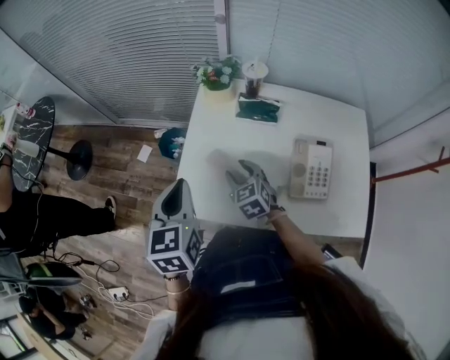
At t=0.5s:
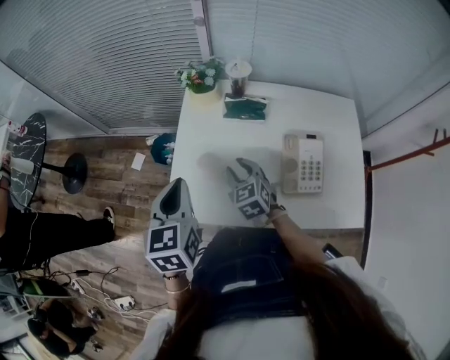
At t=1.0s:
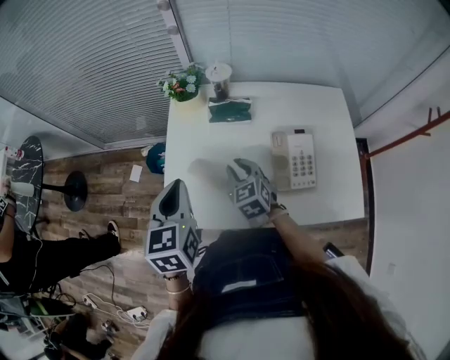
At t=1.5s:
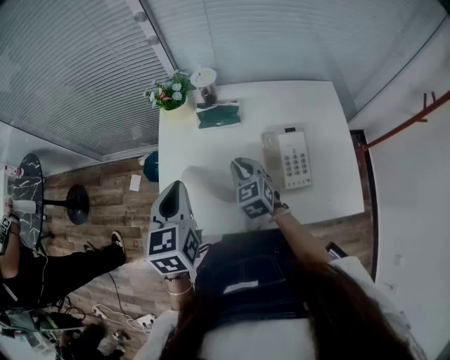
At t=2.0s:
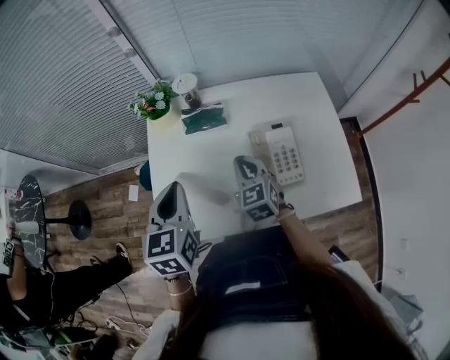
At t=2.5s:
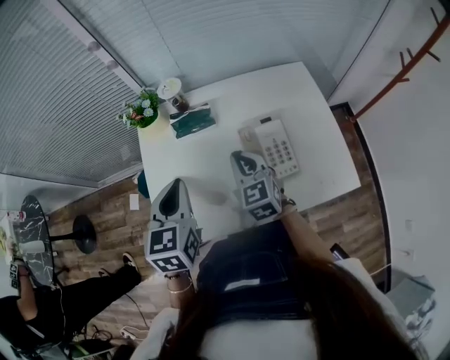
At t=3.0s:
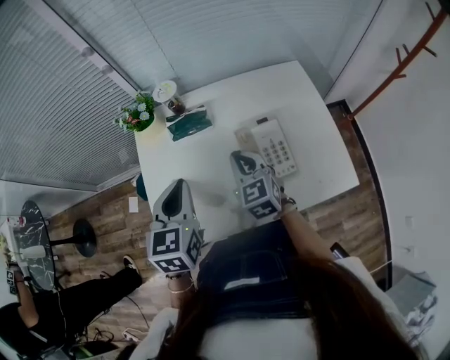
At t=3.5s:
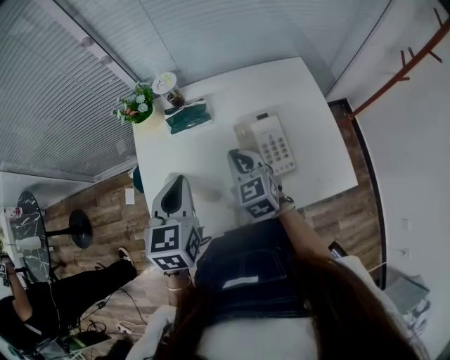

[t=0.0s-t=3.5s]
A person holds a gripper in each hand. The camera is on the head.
t=0.0s to t=2.0s: Both grippers travel together to the right, roughly 15 cm. The right gripper turns by about 20 degrees, and closes.
t=2.0s to t=3.5s: The left gripper is displaced to the right by about 5 cm.

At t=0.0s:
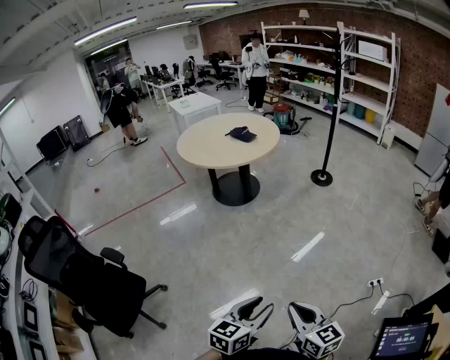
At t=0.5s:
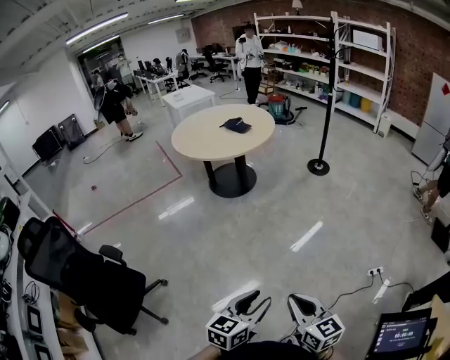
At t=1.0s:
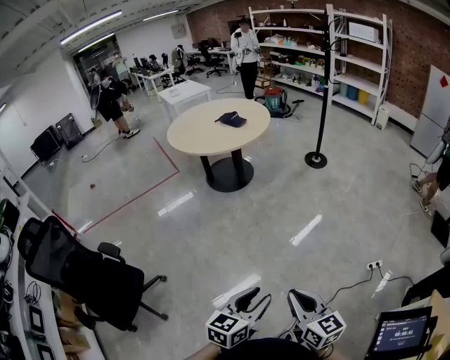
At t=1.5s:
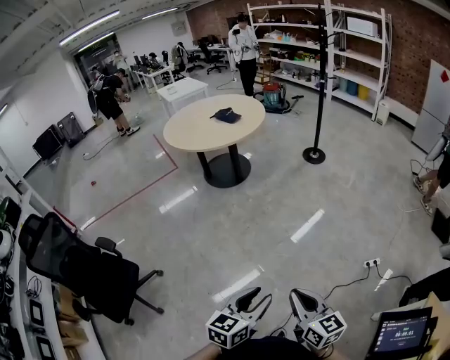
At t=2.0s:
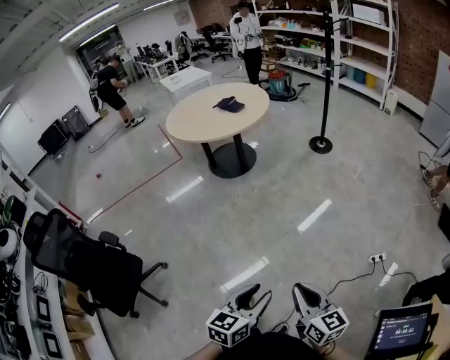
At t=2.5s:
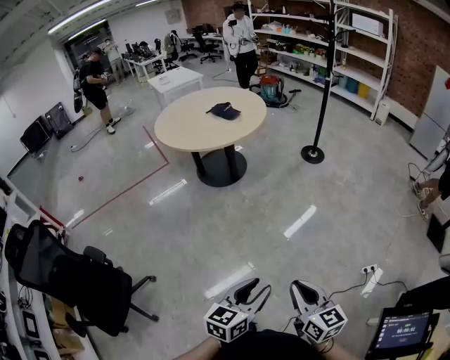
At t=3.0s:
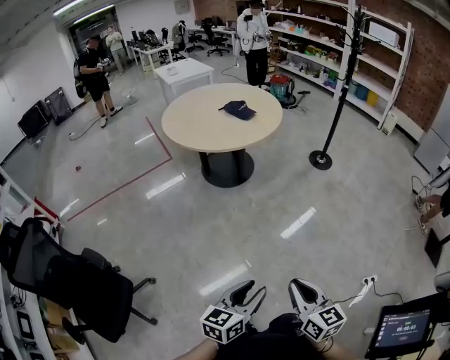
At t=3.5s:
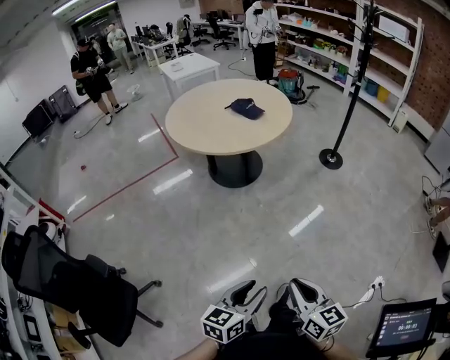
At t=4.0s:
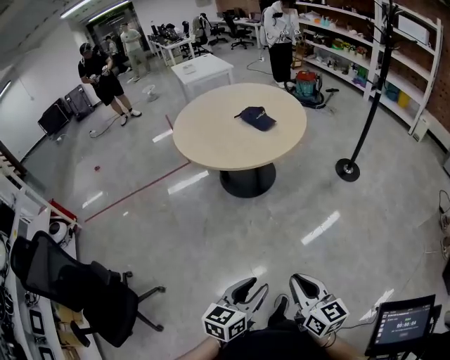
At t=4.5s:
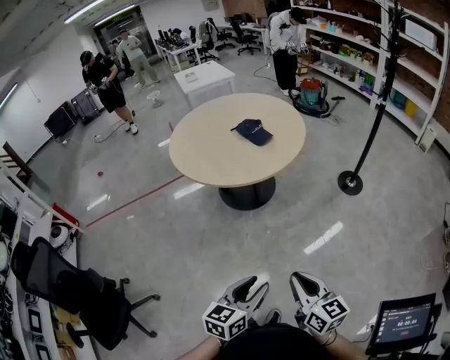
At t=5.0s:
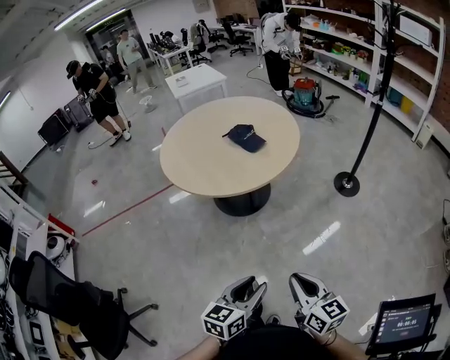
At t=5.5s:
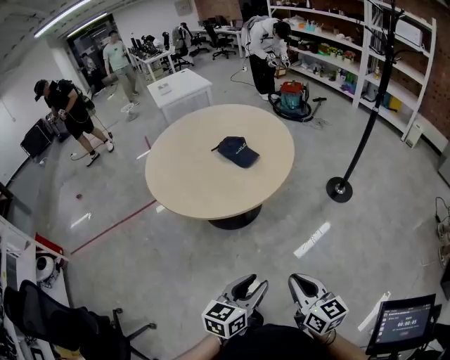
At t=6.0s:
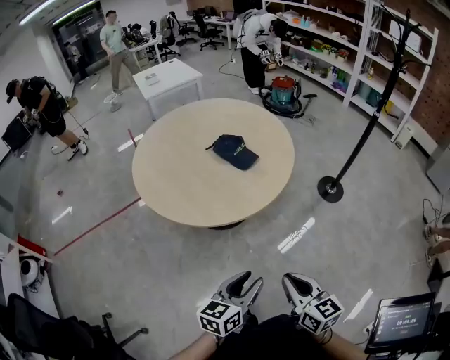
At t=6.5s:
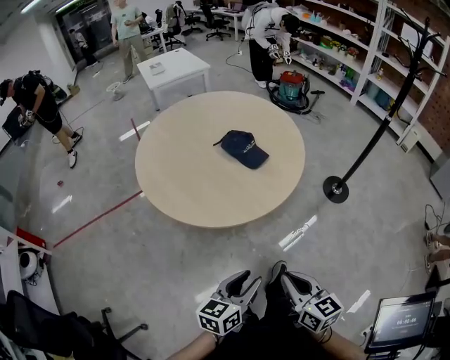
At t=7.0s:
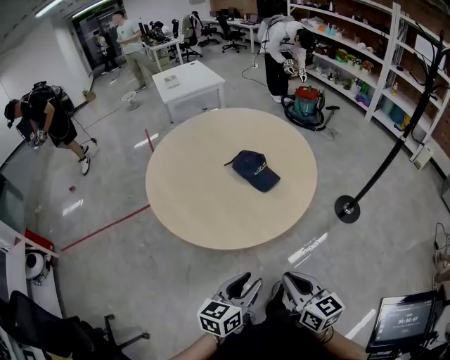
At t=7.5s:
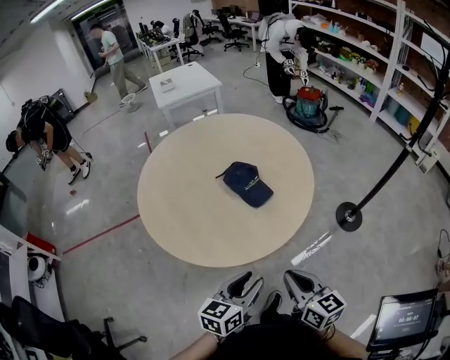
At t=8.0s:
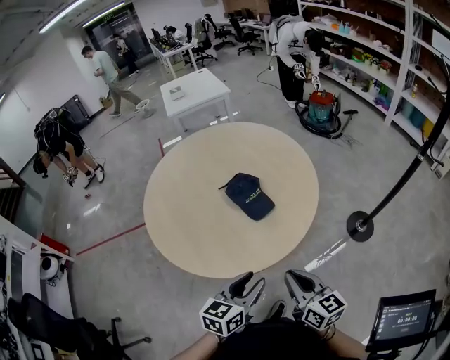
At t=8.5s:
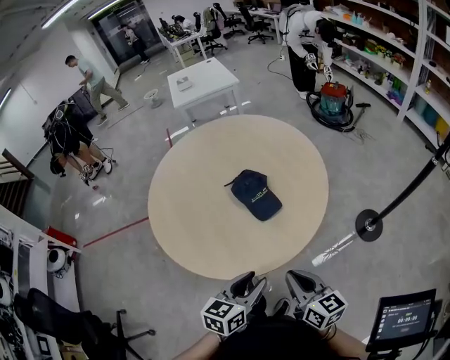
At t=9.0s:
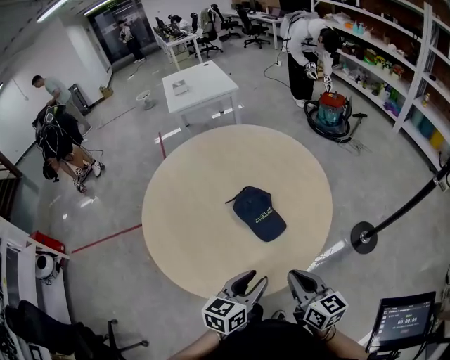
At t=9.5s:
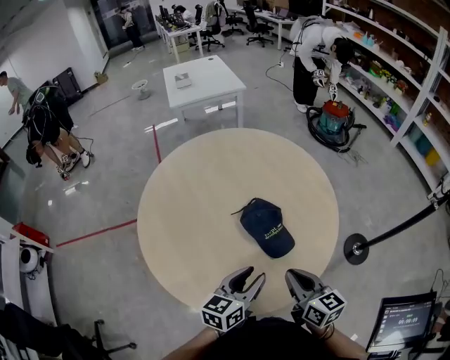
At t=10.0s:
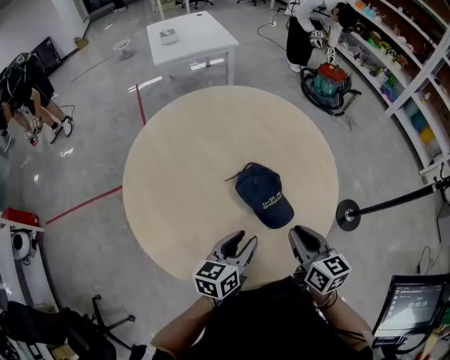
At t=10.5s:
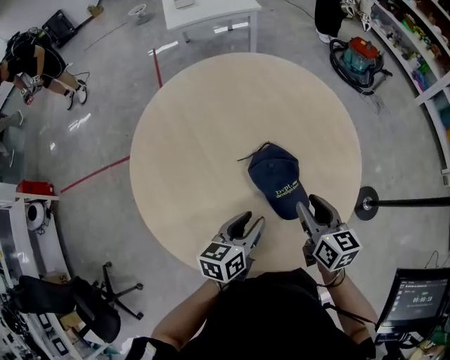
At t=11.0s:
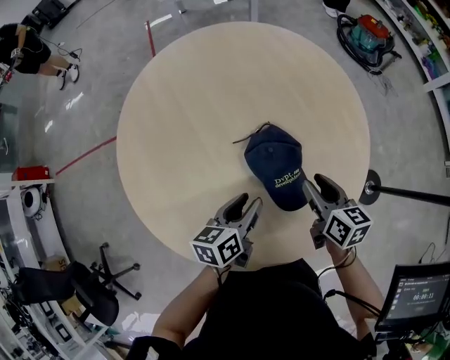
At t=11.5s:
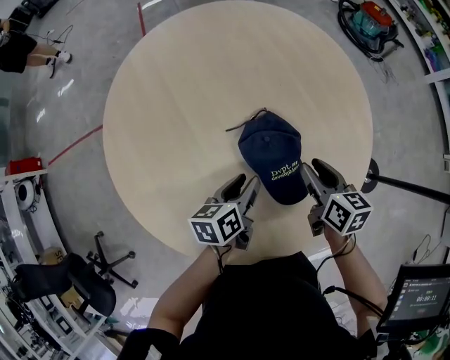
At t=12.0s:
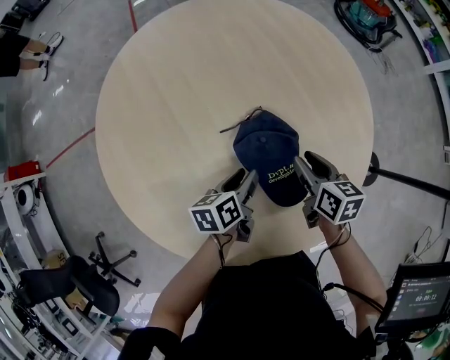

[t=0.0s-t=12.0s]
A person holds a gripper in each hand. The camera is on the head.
t=0.0s to t=2.0s: Both grippers move to the right, some 10 cm.
t=2.0s to t=4.0s: Both grippers are carried forward, some 40 cm.
t=4.0s to t=6.0s: The grippers both shift forward by roughly 35 cm.
t=6.0s to t=8.0s: The grippers both shift forward by roughly 25 cm.
t=8.0s to t=10.0s: The left gripper is displaced forward and to the left by about 30 cm, while the right gripper is displaced forward by roughly 25 cm.
t=10.0s to t=12.0s: The right gripper heads forward and downward, covering roughly 25 cm, turns by some 20 degrees, and opens. Meanwhile the left gripper is displaced downward and forward by roughly 20 cm, and turns by some 30 degrees.

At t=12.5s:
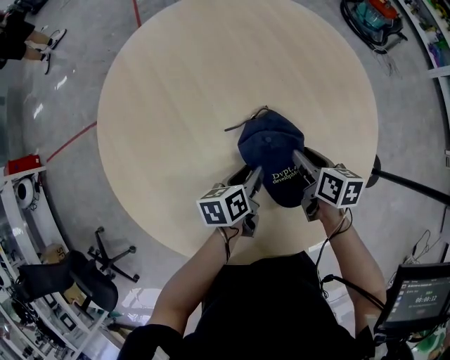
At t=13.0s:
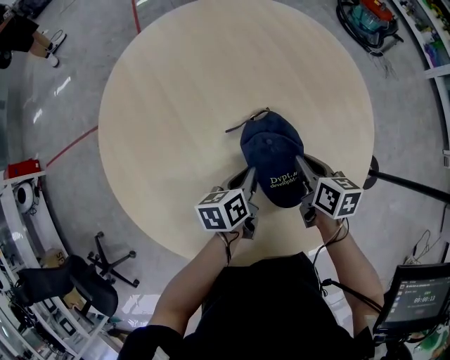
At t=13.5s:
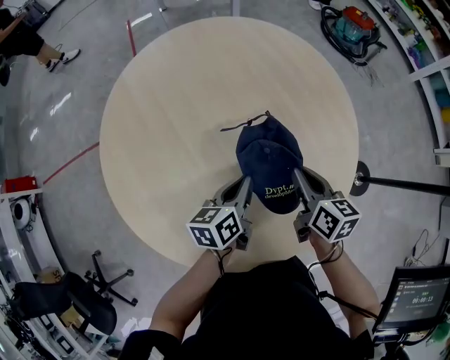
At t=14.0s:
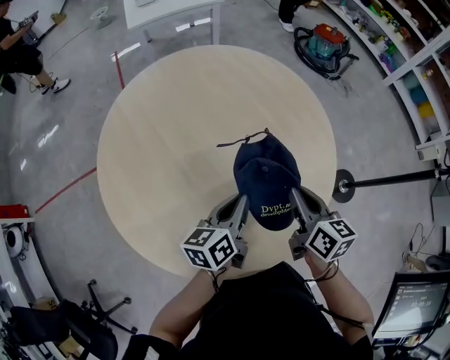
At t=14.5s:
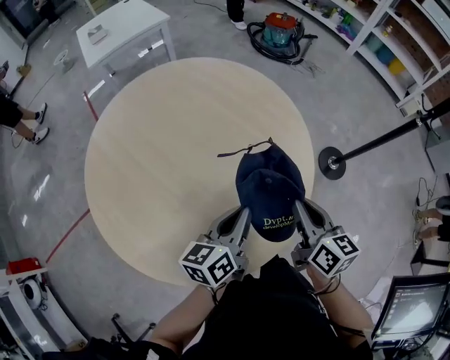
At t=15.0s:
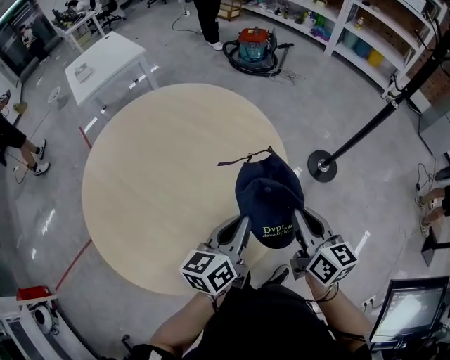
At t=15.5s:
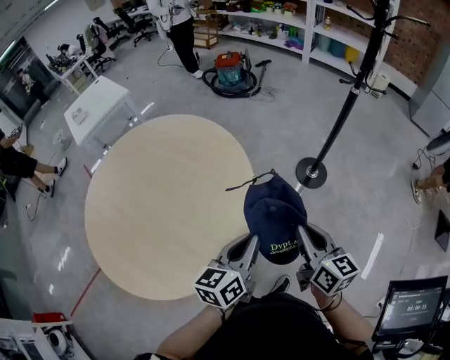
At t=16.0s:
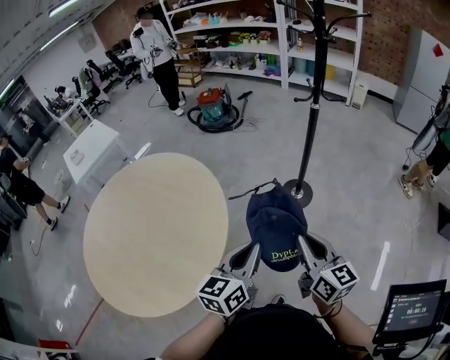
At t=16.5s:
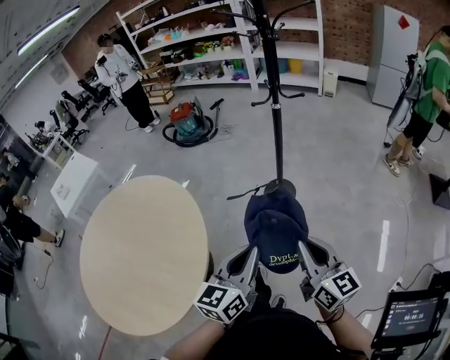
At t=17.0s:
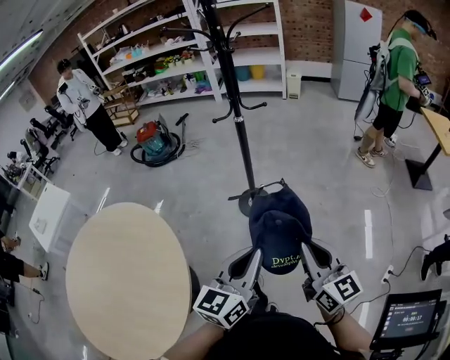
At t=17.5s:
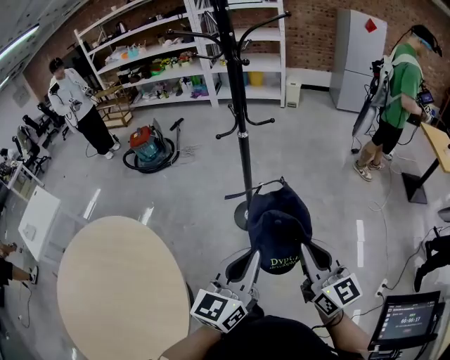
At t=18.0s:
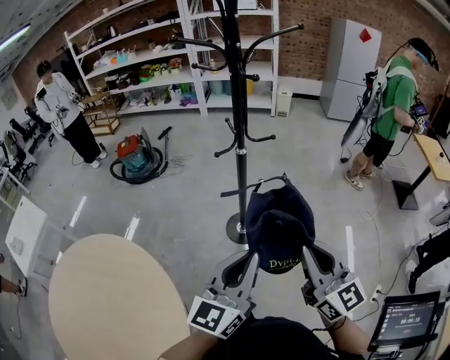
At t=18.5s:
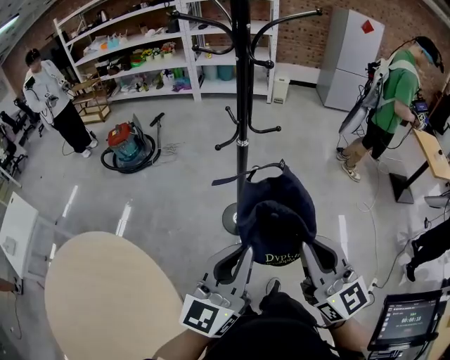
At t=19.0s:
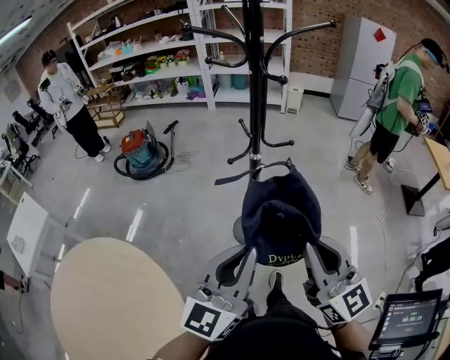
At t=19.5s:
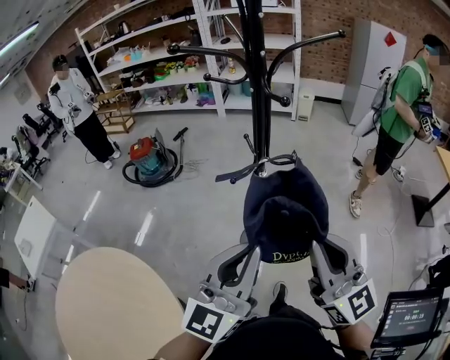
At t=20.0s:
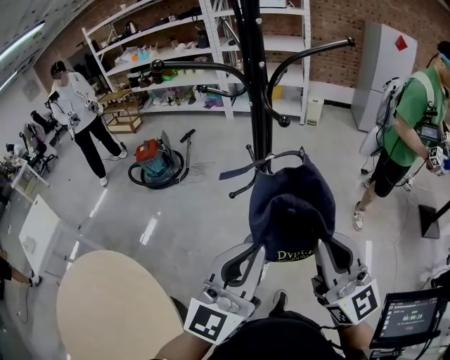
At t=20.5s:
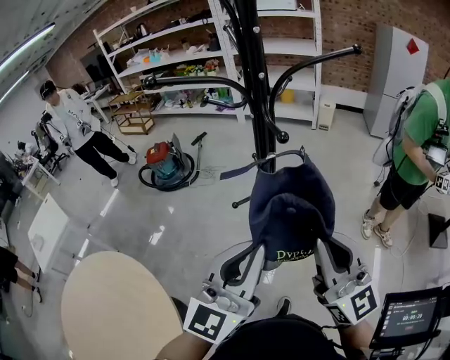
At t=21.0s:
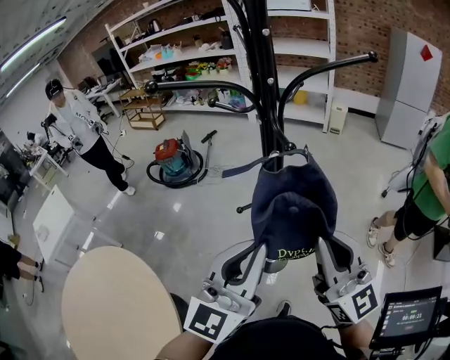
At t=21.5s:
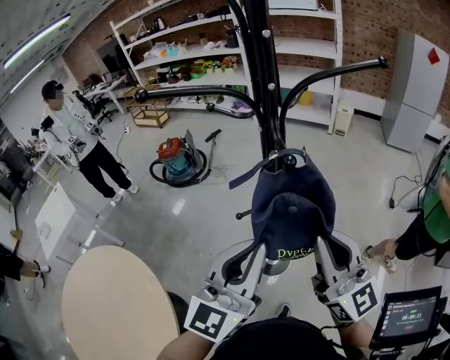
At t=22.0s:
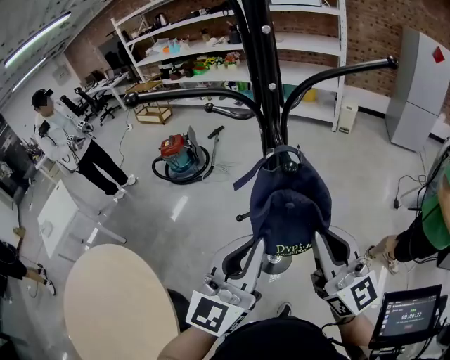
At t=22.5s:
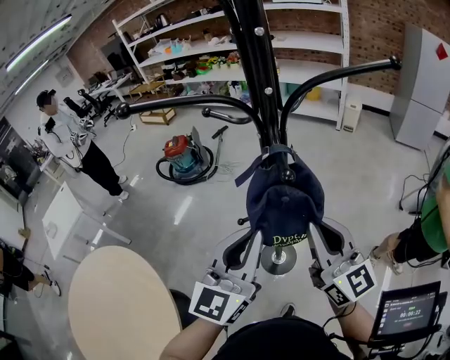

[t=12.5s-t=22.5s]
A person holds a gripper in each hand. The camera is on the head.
t=12.5s to t=14.5s: Both grippers travel together upward, some 20 cm. The right gripper rotates about 40 degrees, and closes. Meanwhile the left gripper rotates roughly 40 degrees, and closes its fingers.
t=14.5s to t=16.5s: The pair of grippers is taken to the right, roughly 50 cm. The left gripper swivels roughly 40 degrees. The right gripper changes its angle by about 30 degrees.
t=16.5s to t=18.5s: Both grippers travel together forward and upward, some 25 cm. The left gripper rotates approximately 20 degrees; the right gripper changes its angle by some 20 degrees.
t=18.5s to t=20.5s: The left gripper travels forward and upward by about 15 cm; the right gripper is displaced forward by about 15 cm.
t=20.5s to t=22.5s: Both grippers move forward, some 15 cm.

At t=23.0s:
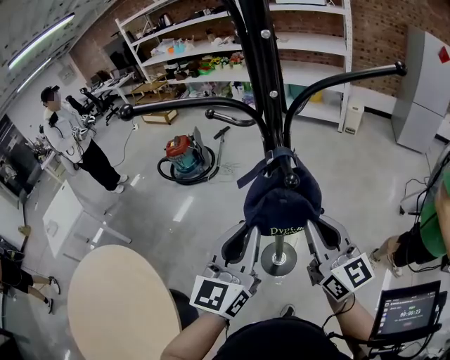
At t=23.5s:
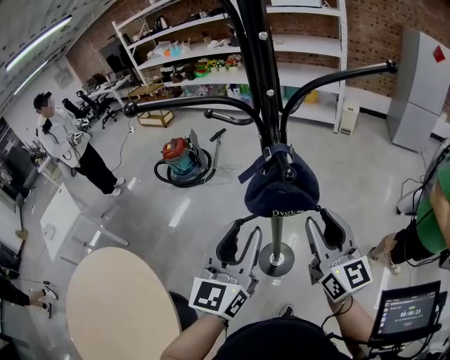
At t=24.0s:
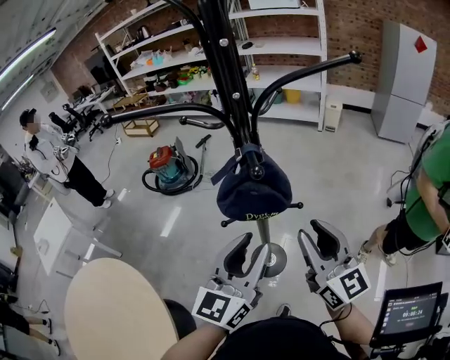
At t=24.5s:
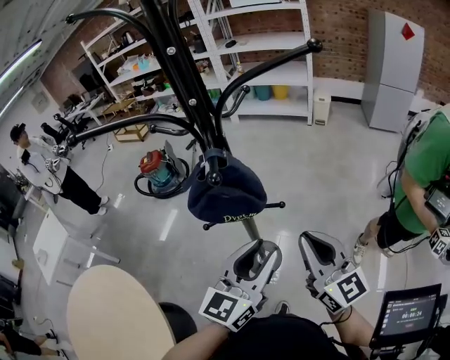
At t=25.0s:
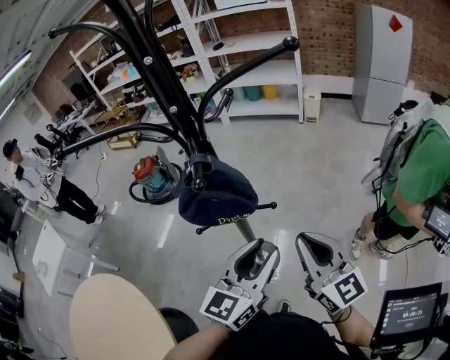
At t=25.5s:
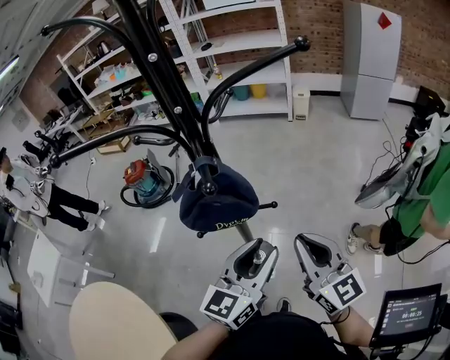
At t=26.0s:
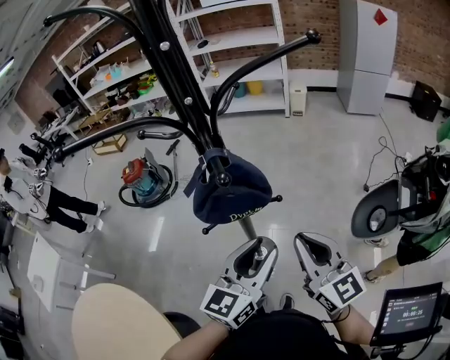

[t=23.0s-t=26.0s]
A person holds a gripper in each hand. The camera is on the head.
t=23.0s to t=24.5s: The right gripper travels to the right and backward by about 10 cm, and opens, then closes again, while the left gripper moves to the right, some 10 cm, and opens.
t=24.5s to t=26.0s: The grippers stay close to where they were, moving slightly.
